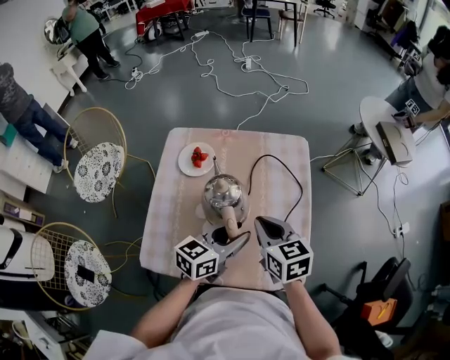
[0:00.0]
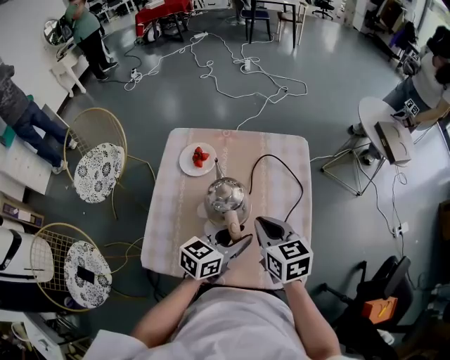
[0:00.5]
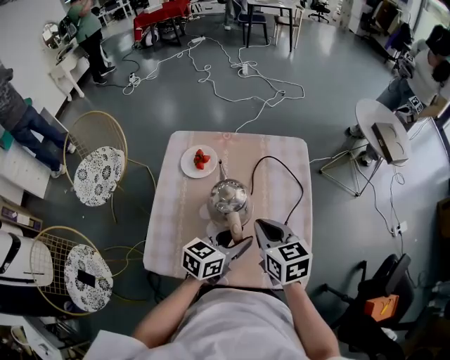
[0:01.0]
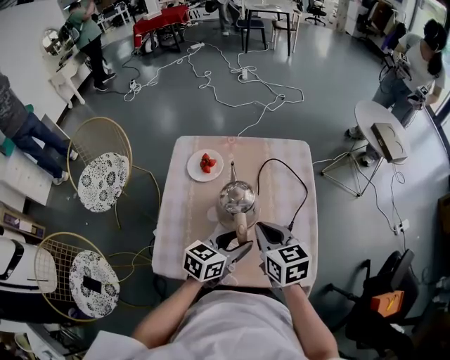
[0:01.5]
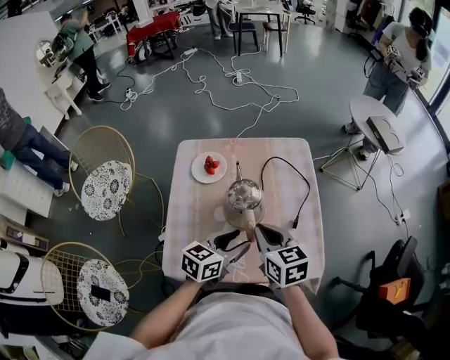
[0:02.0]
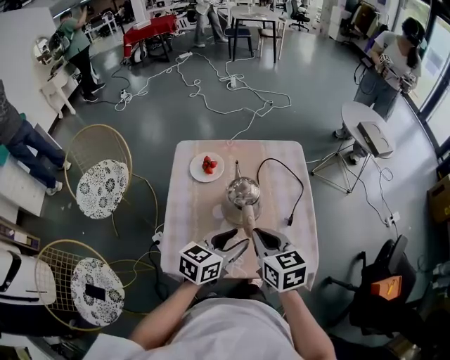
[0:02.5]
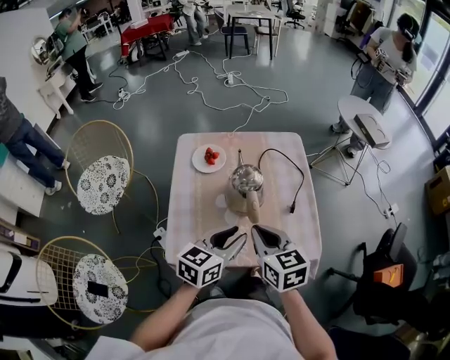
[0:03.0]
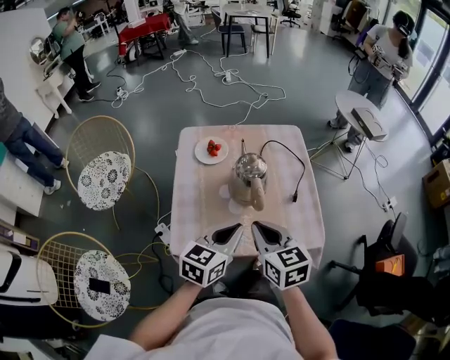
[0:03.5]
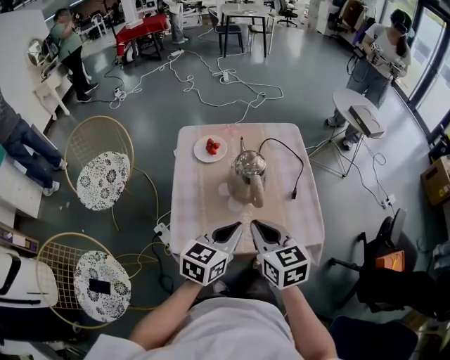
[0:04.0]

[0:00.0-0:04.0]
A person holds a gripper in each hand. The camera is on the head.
0:00.0 to 0:02.0: The right gripper is displaced backward and to the left by roughly 10 cm; the left gripper heads to the left and backward, covering some 10 cm.
0:02.0 to 0:04.0: The left gripper heads backward and upward, covering about 10 cm, and closes up. The right gripper shifts approximately 15 cm backward.

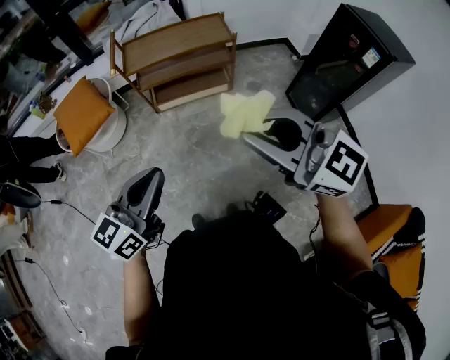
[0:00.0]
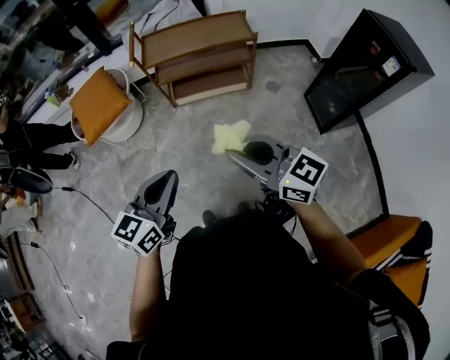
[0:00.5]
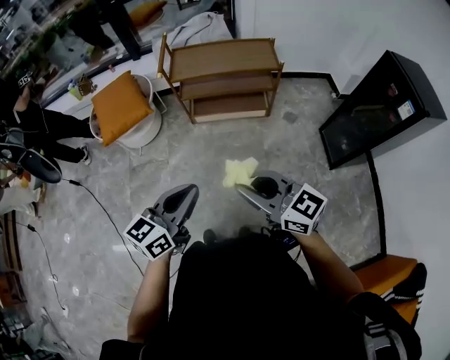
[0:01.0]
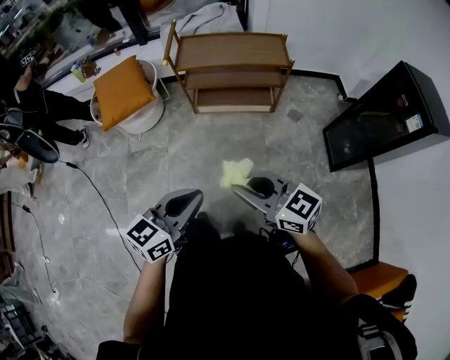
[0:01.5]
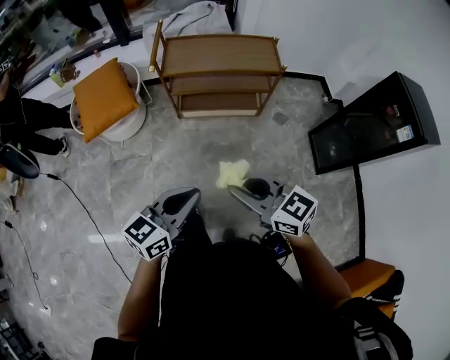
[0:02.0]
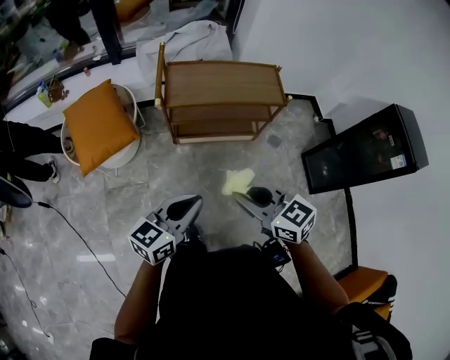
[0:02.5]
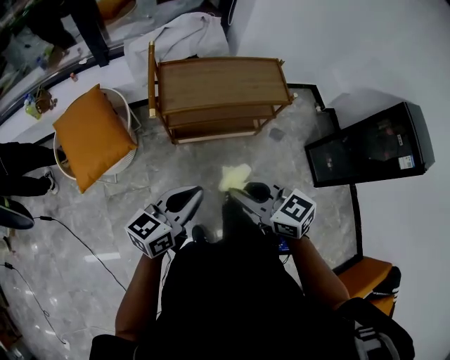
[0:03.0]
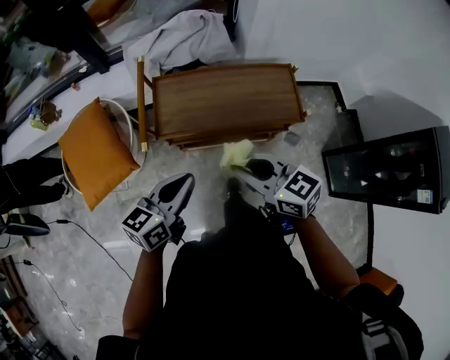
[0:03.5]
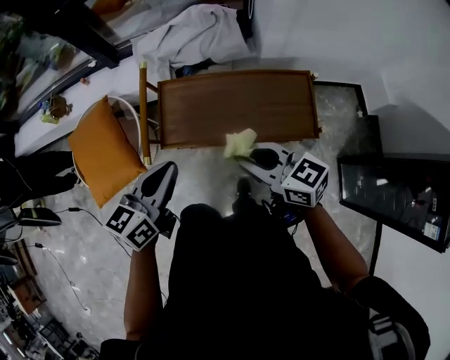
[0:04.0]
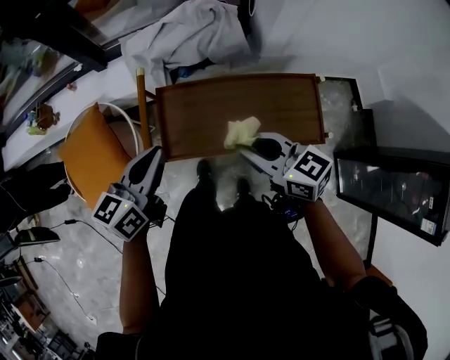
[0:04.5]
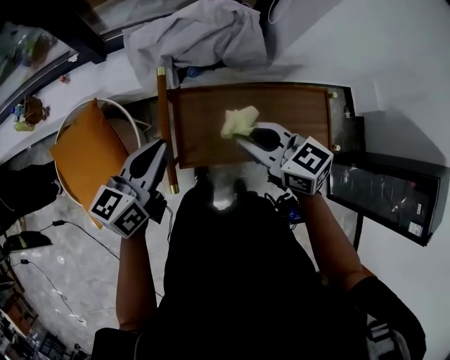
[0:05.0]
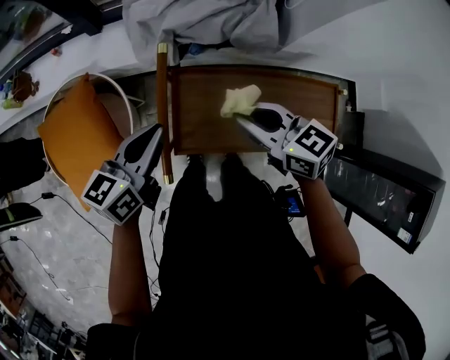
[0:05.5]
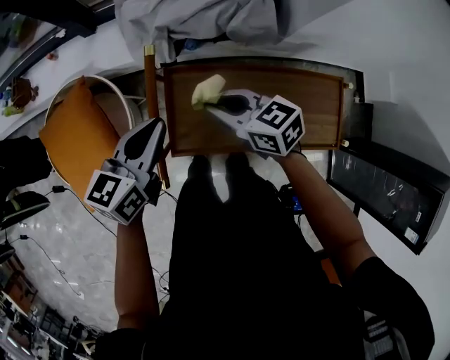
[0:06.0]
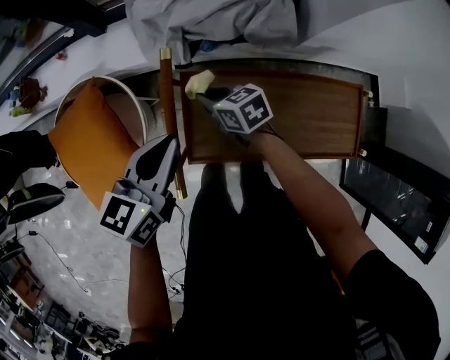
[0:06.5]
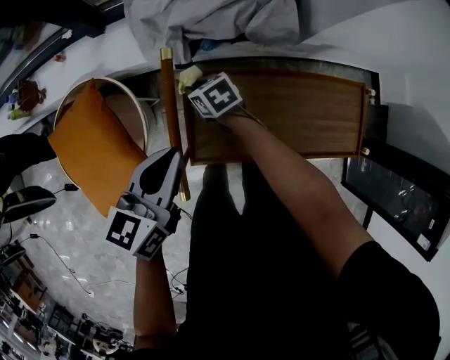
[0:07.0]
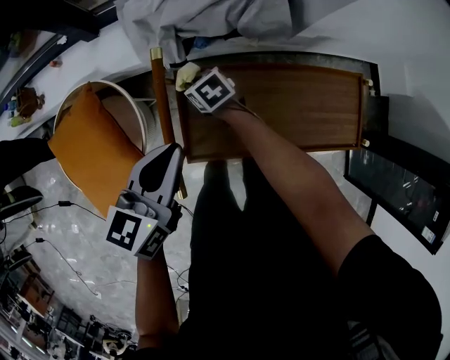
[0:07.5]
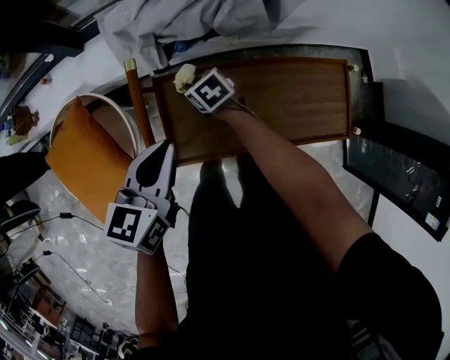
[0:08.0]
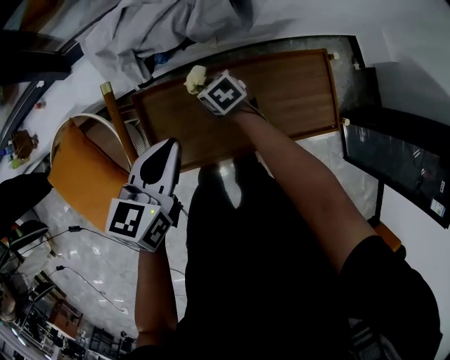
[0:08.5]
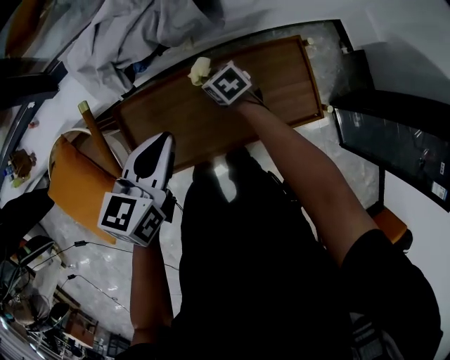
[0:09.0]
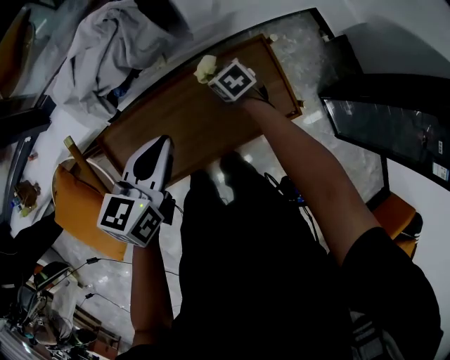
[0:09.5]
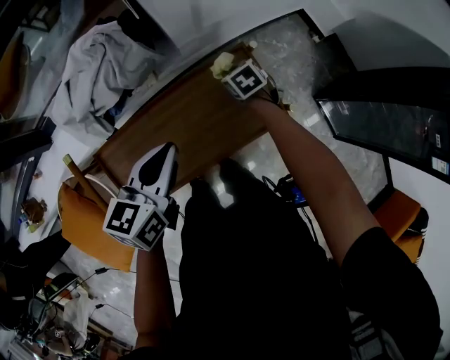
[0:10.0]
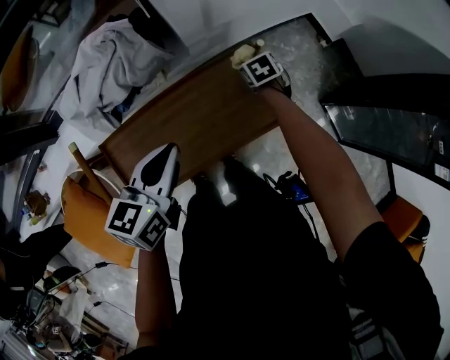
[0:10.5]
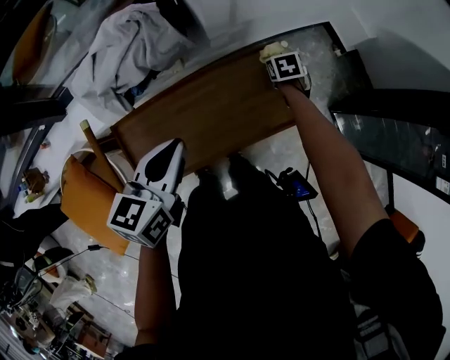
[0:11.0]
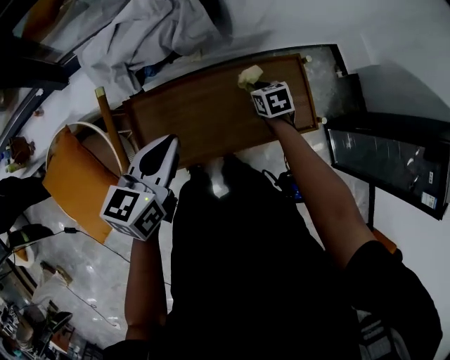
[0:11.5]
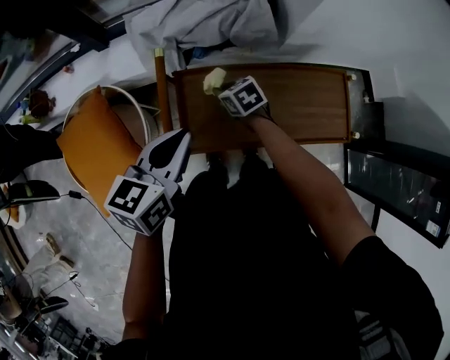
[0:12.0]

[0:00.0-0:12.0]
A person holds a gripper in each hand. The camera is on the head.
0:00.0 to 0:02.0: The right gripper travels downward, forward and to the left by about 20 cm, and rotates roughly 20 degrees, while the left gripper is displaced downward and forward by approximately 10 cm.
0:02.0 to 0:04.0: The pair of grippers is taken forward, about 50 cm.
0:04.0 to 0:06.0: The right gripper heads forward, to the left and downward, covering some 30 cm; the left gripper heads forward, covering roughly 20 cm.
0:06.0 to 0:08.0: The right gripper goes approximately 20 cm downward and forward, and swivels some 30 degrees.
0:08.0 to 0:10.0: The right gripper shifts by roughly 40 cm, and turns by roughly 30 degrees; the left gripper shifts by about 25 cm, and swivels roughly 20 degrees.
0:10.0 to 0:12.0: The right gripper shifts by approximately 40 cm, and turns by roughly 30 degrees. Meanwhile the left gripper changes place by approximately 30 cm.

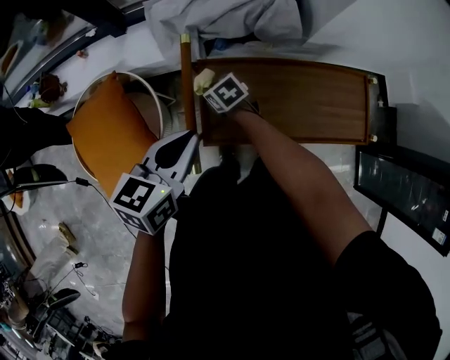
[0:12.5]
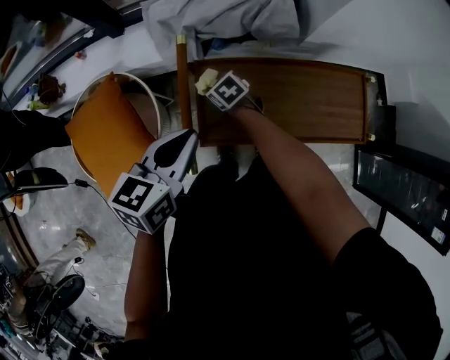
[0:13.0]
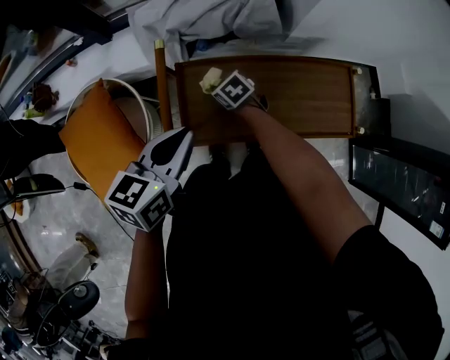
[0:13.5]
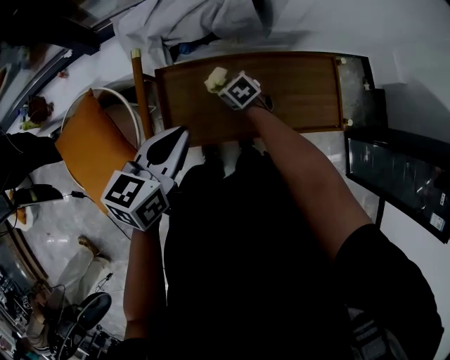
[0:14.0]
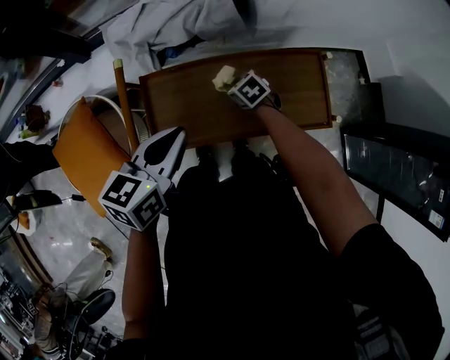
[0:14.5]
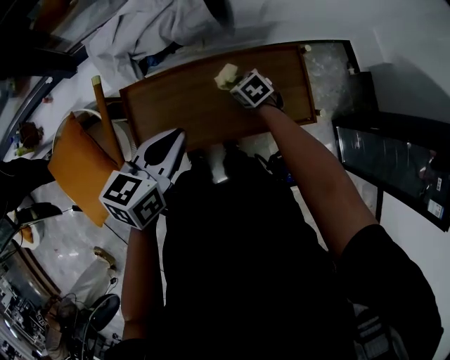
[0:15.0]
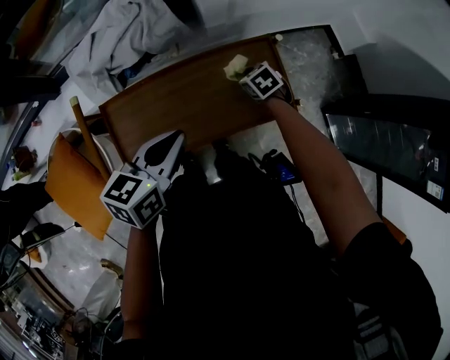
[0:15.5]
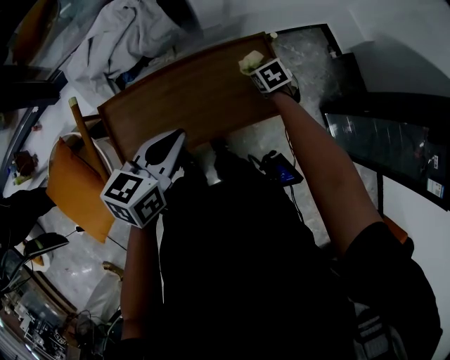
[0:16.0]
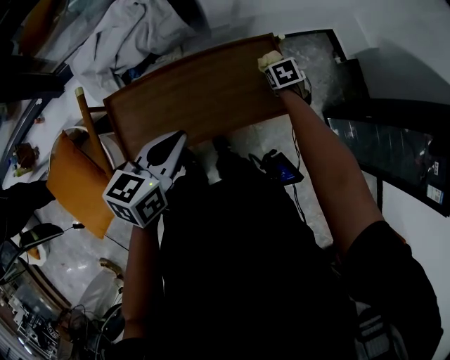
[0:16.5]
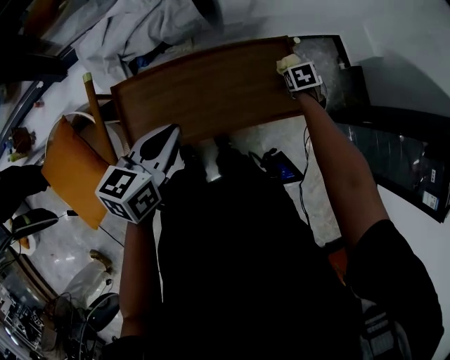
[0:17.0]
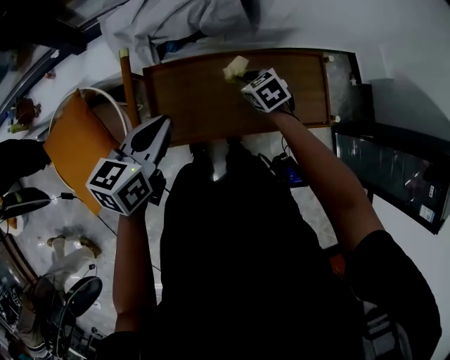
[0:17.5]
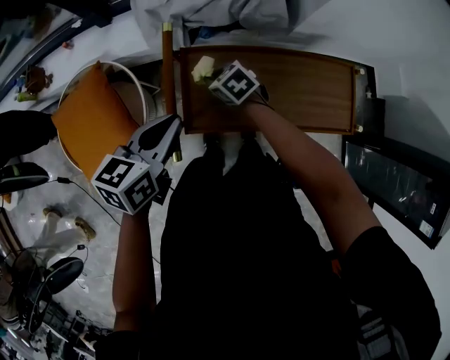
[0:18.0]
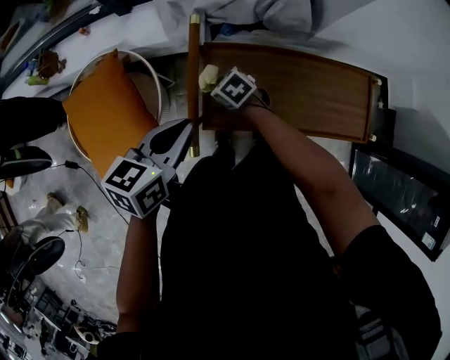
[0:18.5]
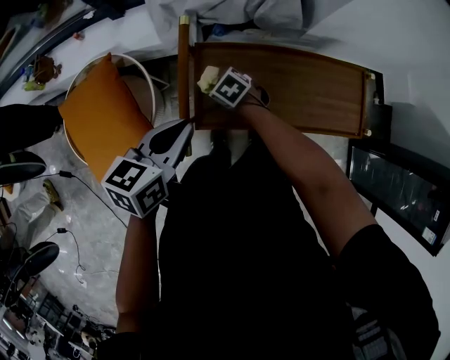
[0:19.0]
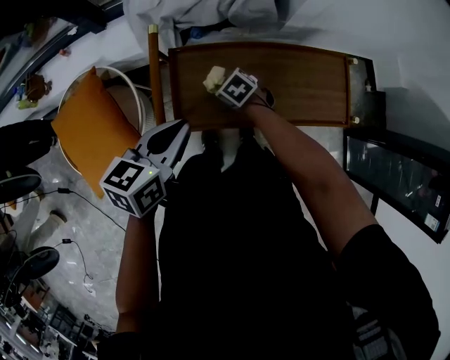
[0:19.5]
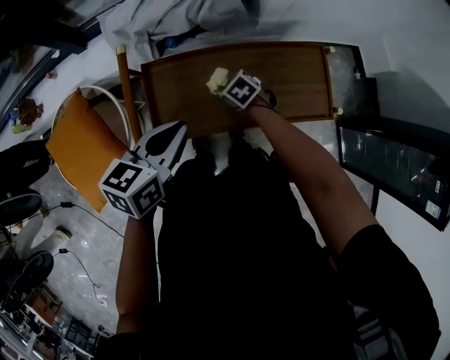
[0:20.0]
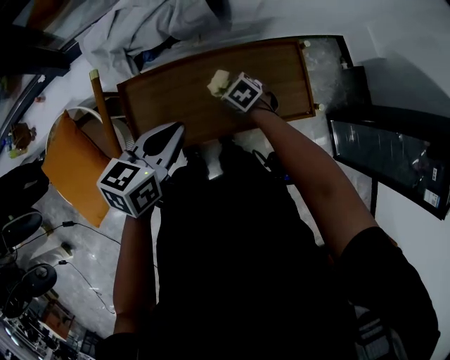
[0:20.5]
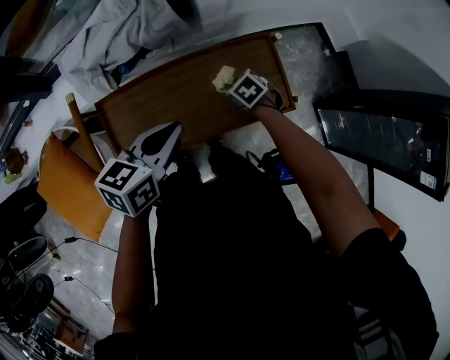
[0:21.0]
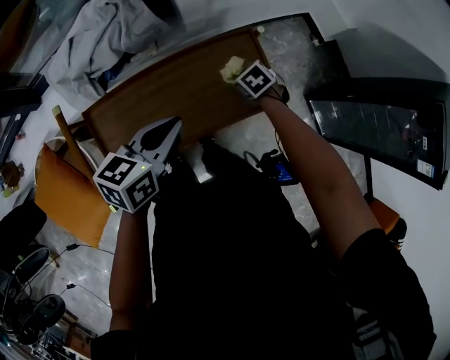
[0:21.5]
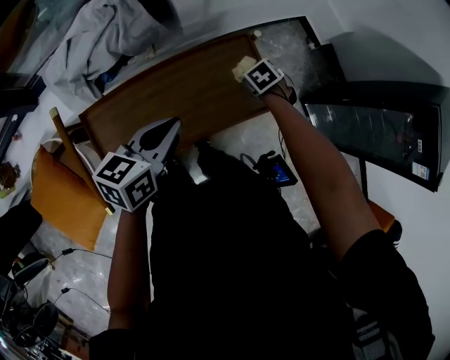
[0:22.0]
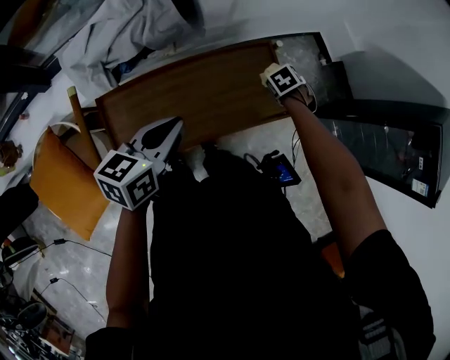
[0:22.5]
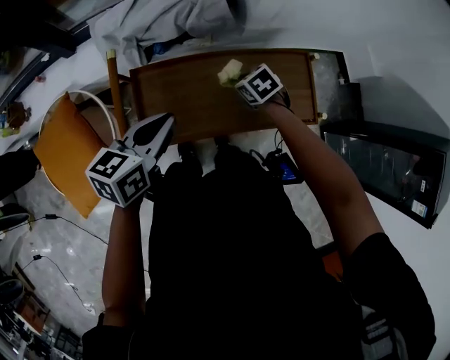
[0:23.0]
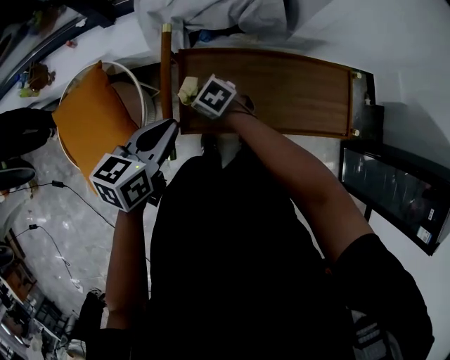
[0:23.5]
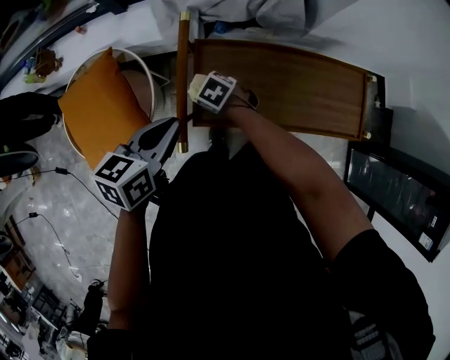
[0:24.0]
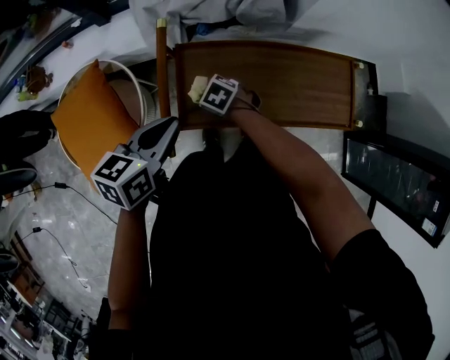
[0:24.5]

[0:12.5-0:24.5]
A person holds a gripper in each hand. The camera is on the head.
0:12.5 to 0:14.5: The left gripper shifts about 15 cm to the right, while the right gripper heads to the right, covering roughly 25 cm.
0:14.5 to 0:16.5: The left gripper changes place by some 15 cm, while the right gripper moves some 30 cm, and changes its angle by about 40 degrees.
0:16.5 to 0:18.5: The right gripper changes place by about 60 cm, and swivels about 50 degrees. Meanwhile the left gripper moves some 30 cm.
0:18.5 to 0:20.5: Both grippers travel together to the right, approximately 25 cm.
0:20.5 to 0:22.5: The right gripper shifts by roughly 25 cm, and swivels some 30 degrees.
0:22.5 to 0:24.5: The right gripper changes place by approximately 50 cm, and changes its angle by approximately 50 degrees; the left gripper ends up some 25 cm from where it was.
